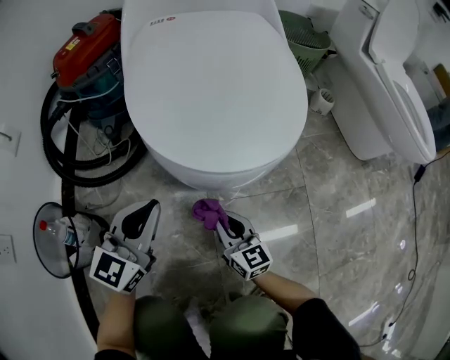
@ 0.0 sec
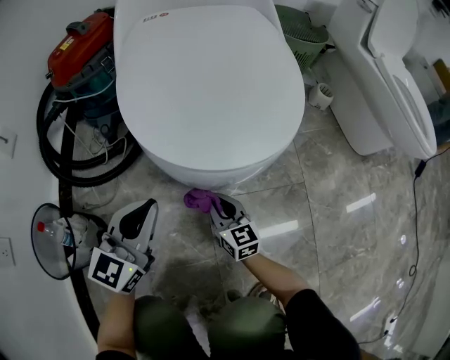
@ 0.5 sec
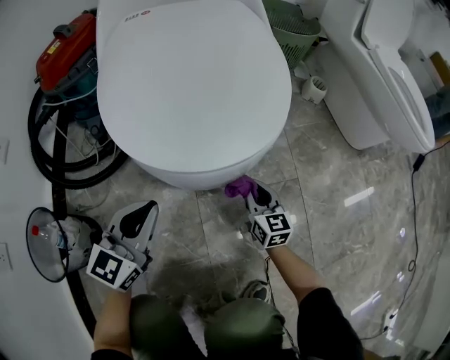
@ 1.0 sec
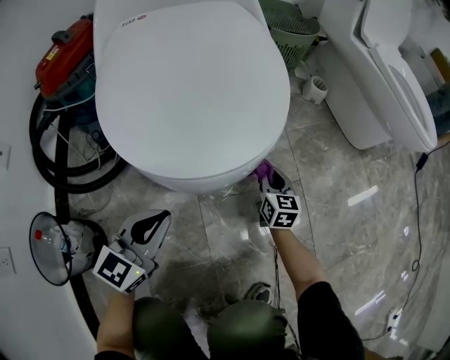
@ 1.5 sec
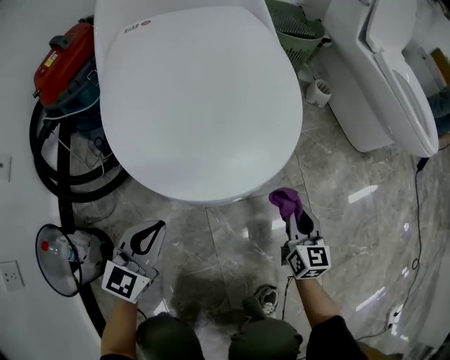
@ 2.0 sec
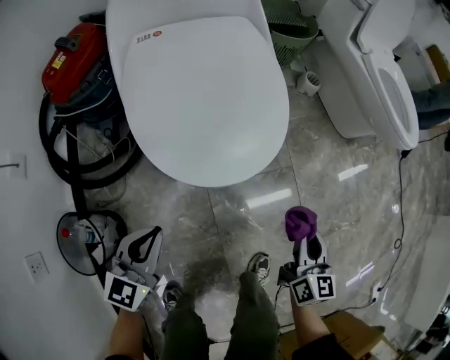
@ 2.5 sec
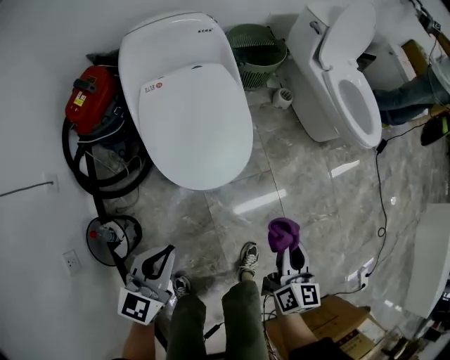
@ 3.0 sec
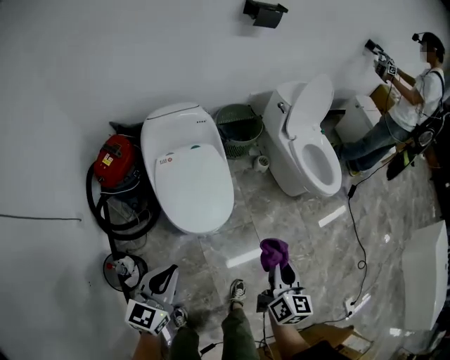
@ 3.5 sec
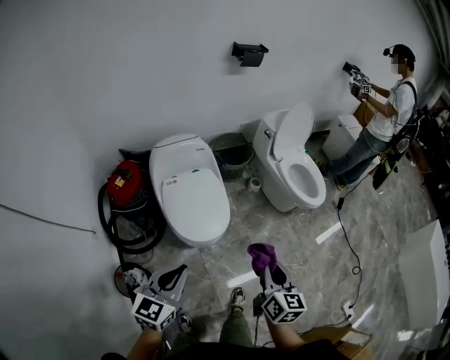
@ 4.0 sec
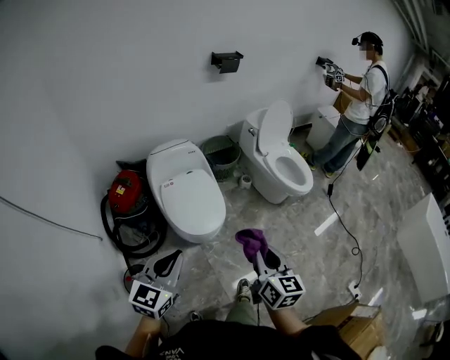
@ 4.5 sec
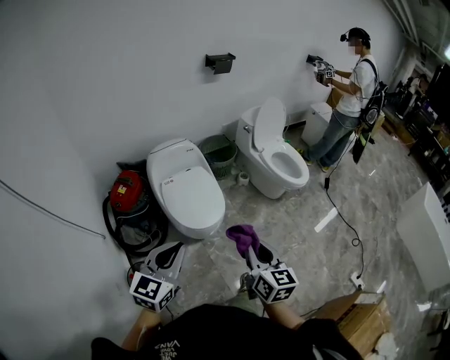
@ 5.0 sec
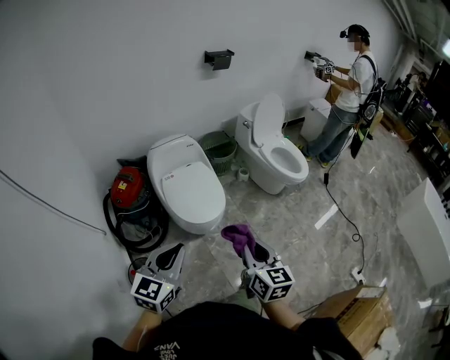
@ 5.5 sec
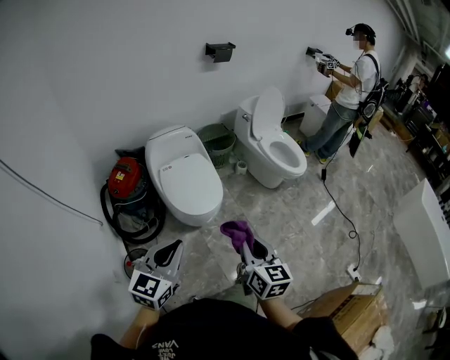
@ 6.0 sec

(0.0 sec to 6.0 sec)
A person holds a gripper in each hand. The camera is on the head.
0.0 sec - 2.0 sec: The right gripper heads to the right, covering about 20 cm, and rotates about 30 degrees, while the left gripper shifts roughly 5 cm downward.
2.0 sec - 4.0 sec: Both grippers move upward, approximately 70 cm.
4.0 sec - 6.0 sec: The left gripper shifts roughly 15 cm backward and upward. Meanwhile the right gripper goes some 15 cm backward.

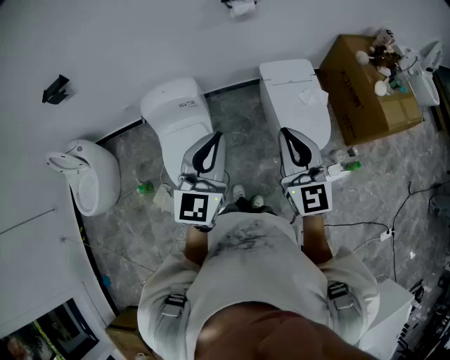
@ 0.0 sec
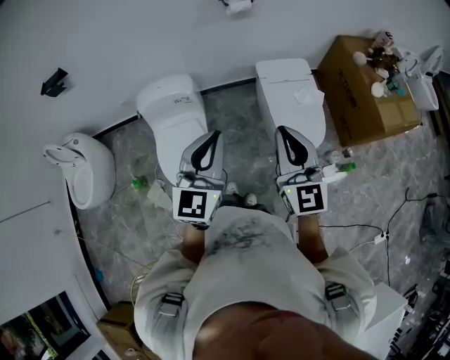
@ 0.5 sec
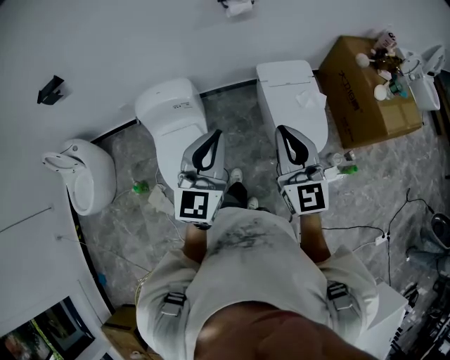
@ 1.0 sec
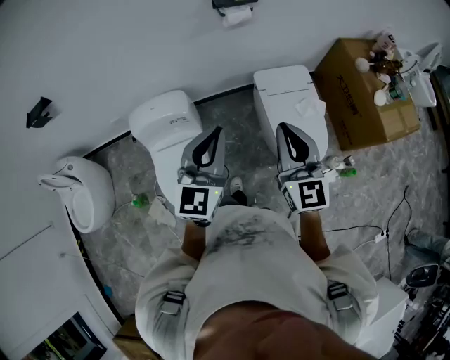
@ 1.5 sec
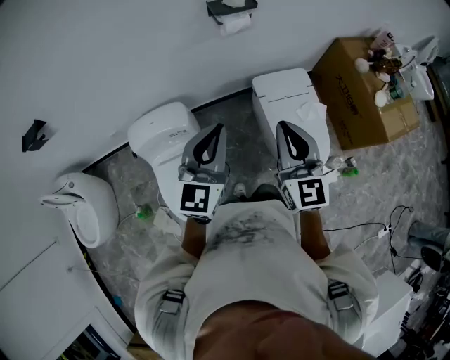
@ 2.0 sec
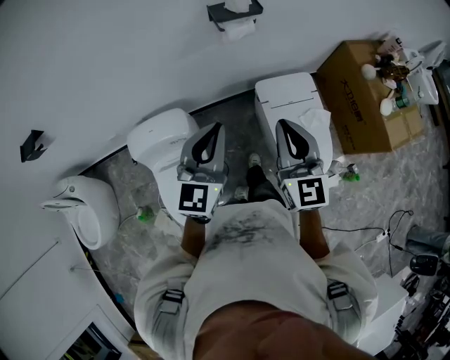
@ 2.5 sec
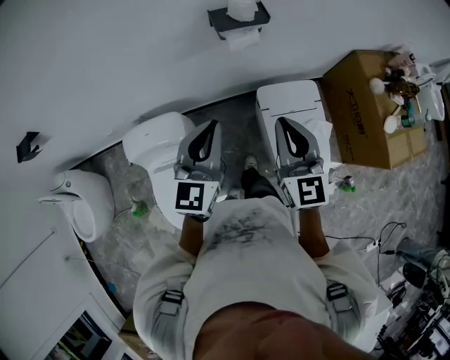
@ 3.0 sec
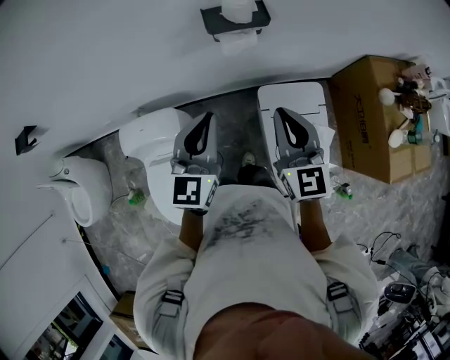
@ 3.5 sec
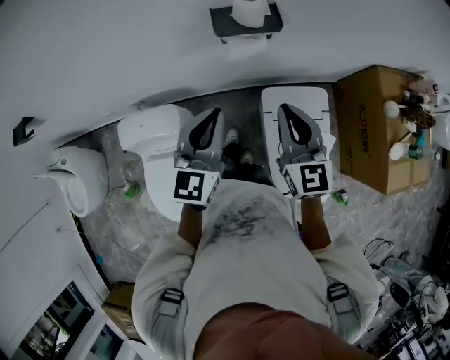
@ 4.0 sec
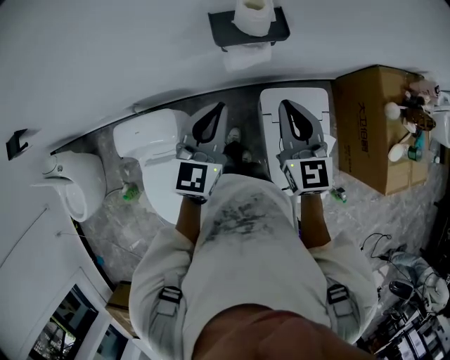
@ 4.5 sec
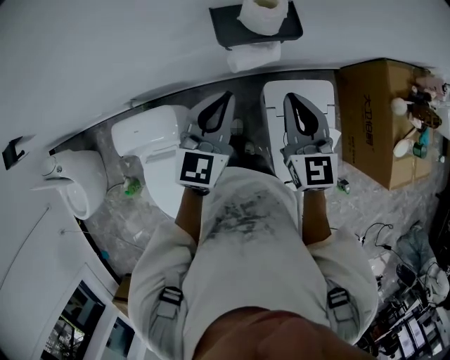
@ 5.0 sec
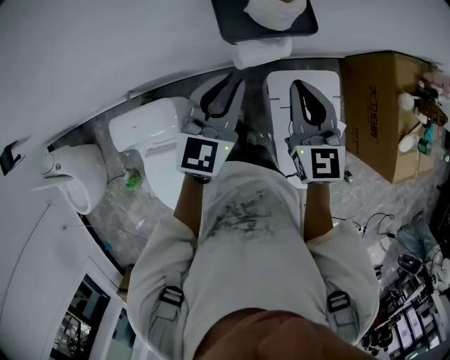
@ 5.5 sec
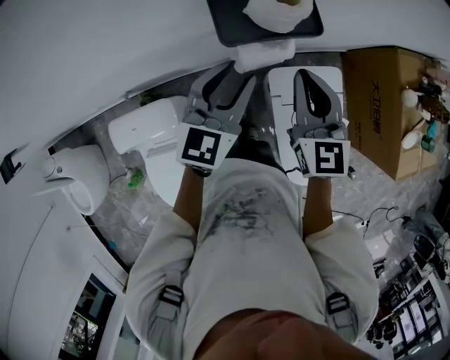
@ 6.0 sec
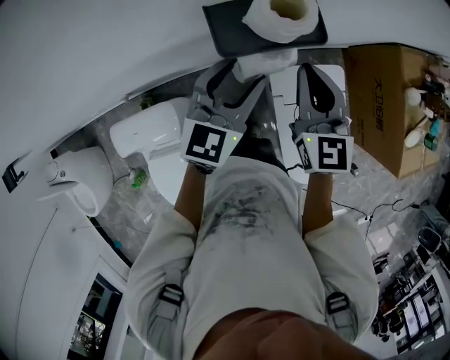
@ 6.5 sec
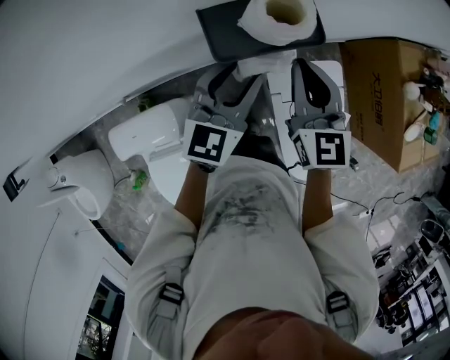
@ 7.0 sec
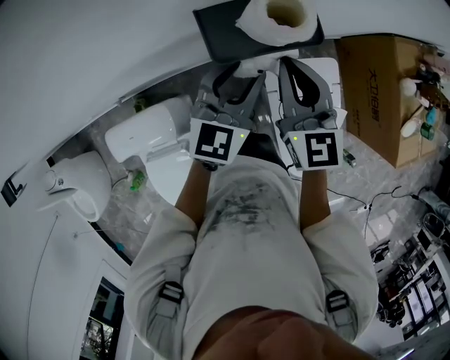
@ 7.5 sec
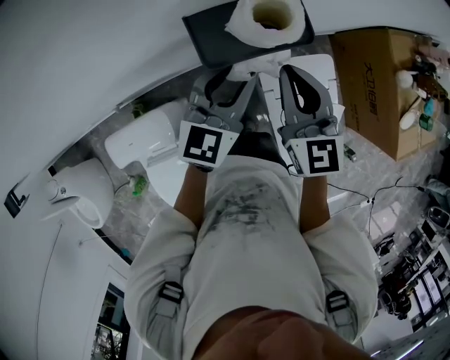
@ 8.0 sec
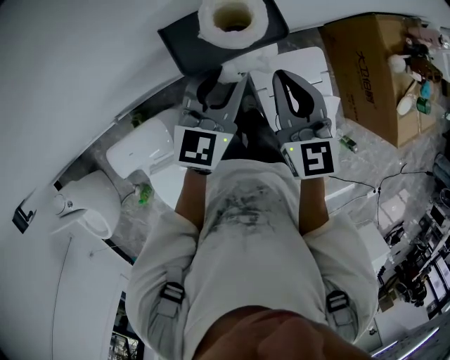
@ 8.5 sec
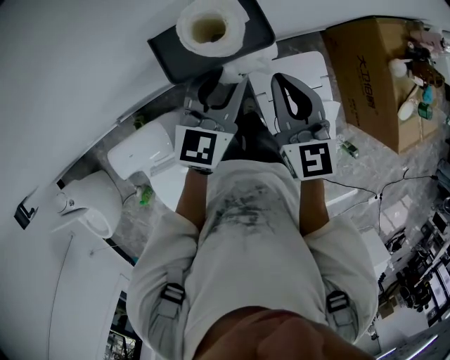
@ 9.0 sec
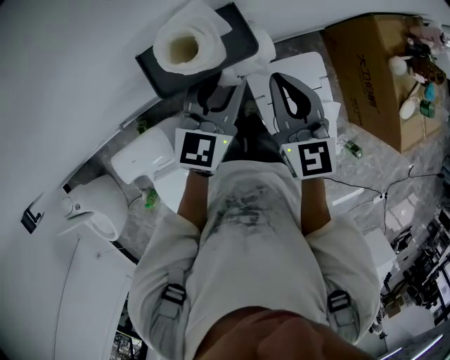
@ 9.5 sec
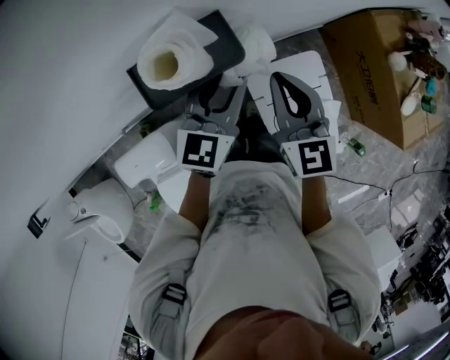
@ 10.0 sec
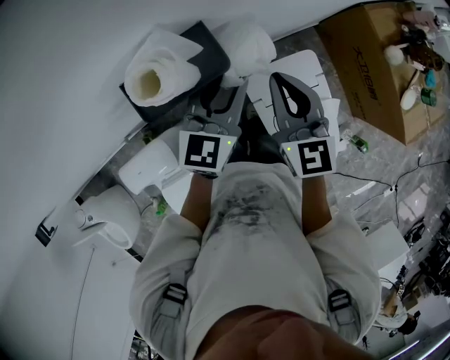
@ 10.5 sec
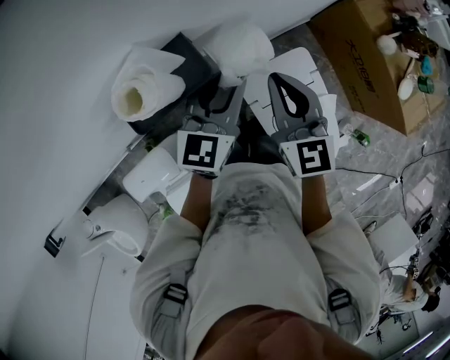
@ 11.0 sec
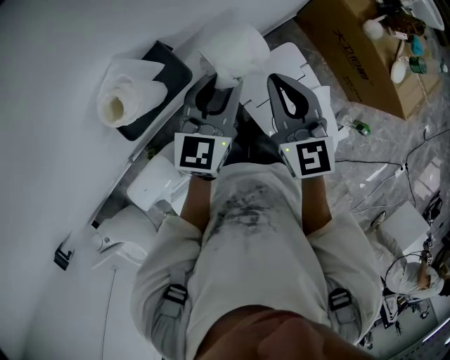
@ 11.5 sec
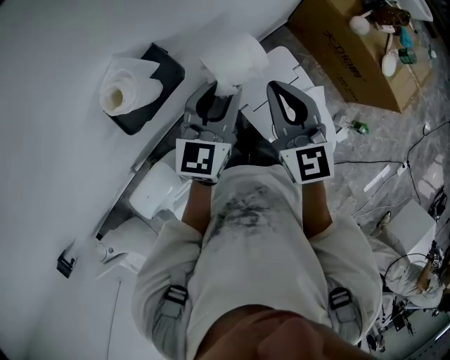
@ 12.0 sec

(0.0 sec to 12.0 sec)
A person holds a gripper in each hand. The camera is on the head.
0.0 sec - 2.0 sec: The grippers both shift forward by some 25 cm.
2.0 sec - 4.0 sec: The two grippers go roughly 30 cm forward.
4.0 sec - 6.0 sec: Both grippers move forward and downward, roughly 15 cm. The left gripper opens its fingers.
6.0 sec - 8.0 sec: The left gripper changes place by roughly 5 cm.
8.0 sec - 10.0 sec: Both grippers travel together to the right, roughly 5 cm.
10.0 sec - 12.0 sec: The two grippers go some 10 cm to the right.

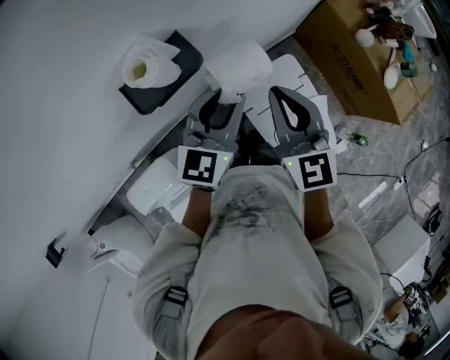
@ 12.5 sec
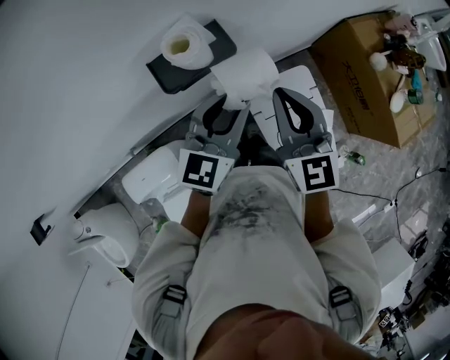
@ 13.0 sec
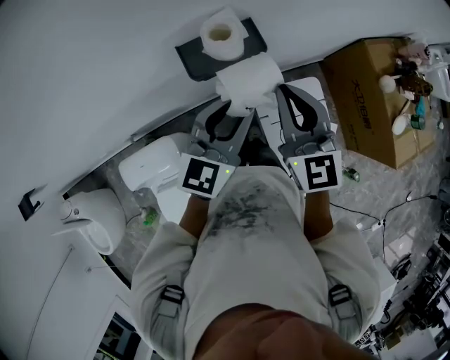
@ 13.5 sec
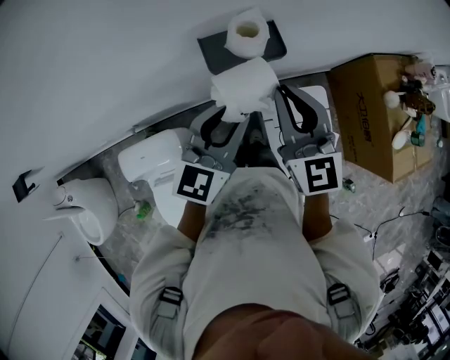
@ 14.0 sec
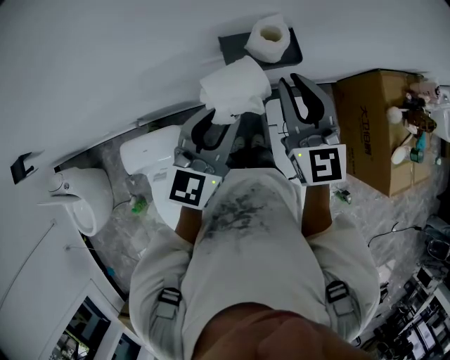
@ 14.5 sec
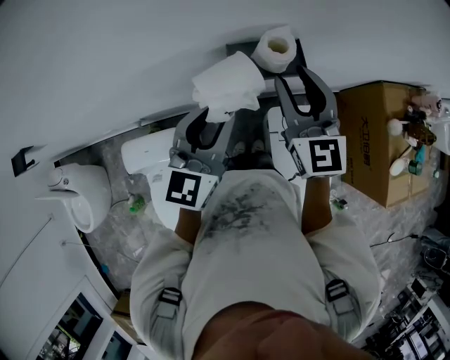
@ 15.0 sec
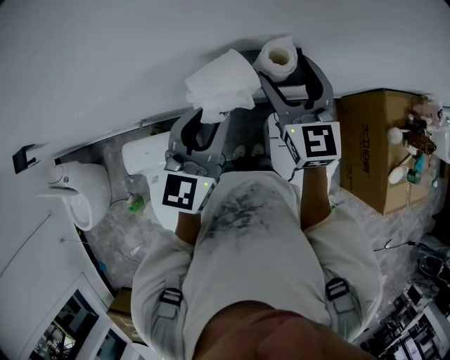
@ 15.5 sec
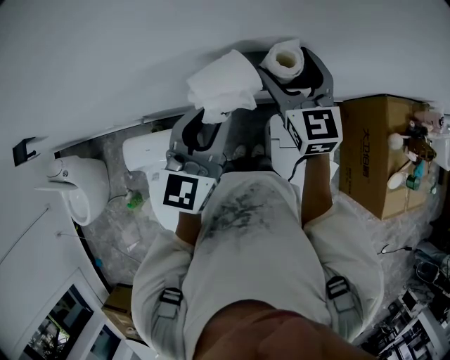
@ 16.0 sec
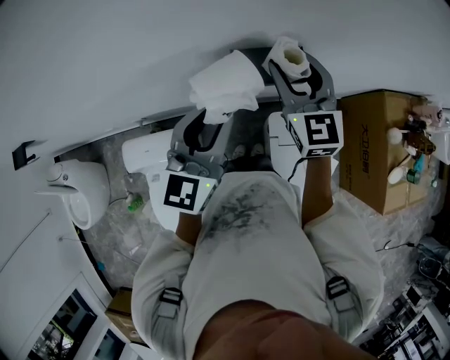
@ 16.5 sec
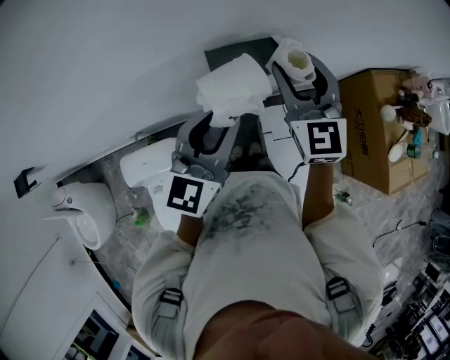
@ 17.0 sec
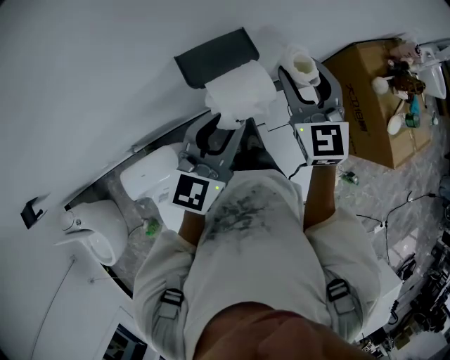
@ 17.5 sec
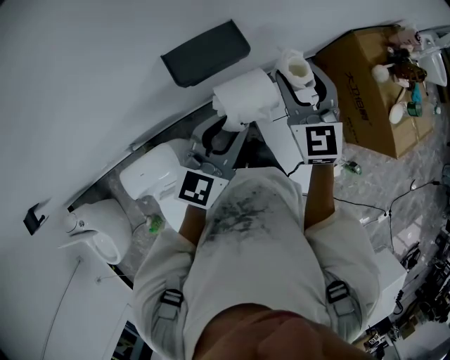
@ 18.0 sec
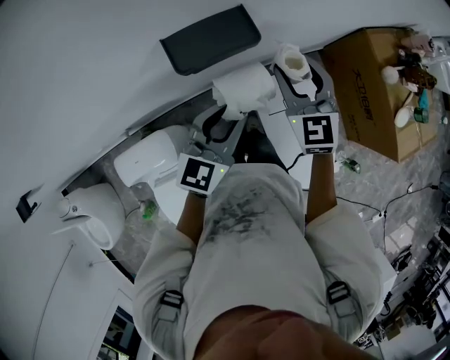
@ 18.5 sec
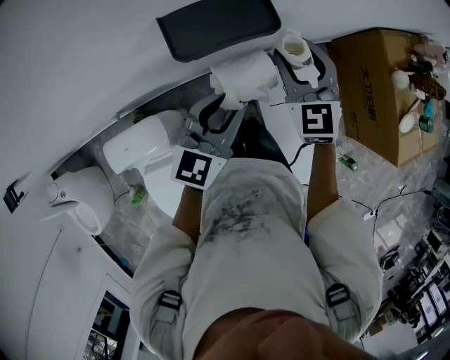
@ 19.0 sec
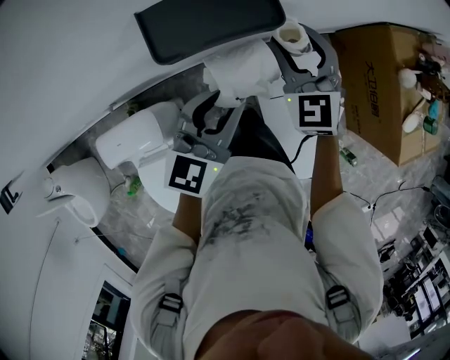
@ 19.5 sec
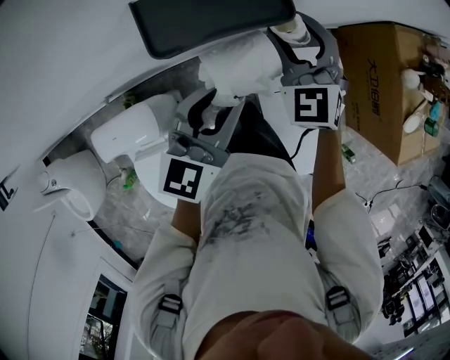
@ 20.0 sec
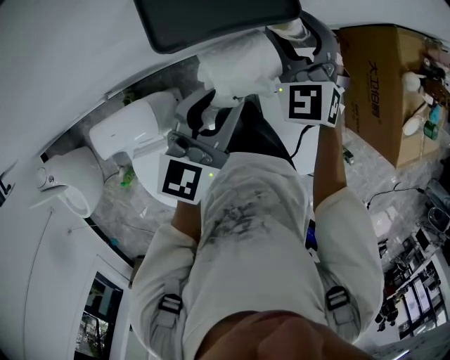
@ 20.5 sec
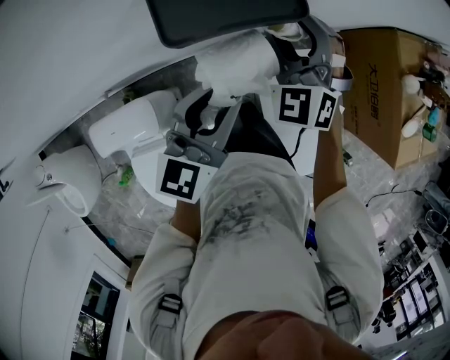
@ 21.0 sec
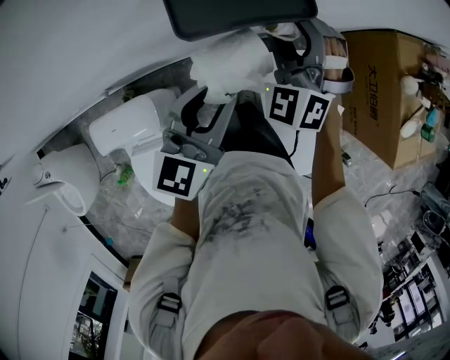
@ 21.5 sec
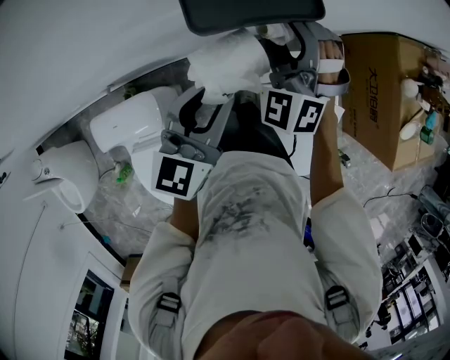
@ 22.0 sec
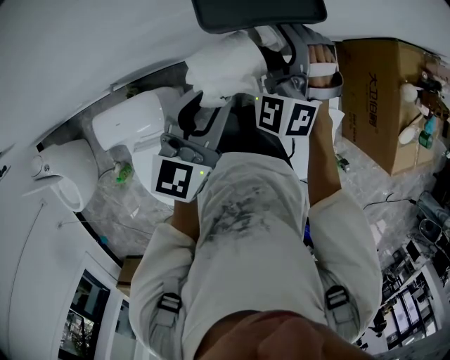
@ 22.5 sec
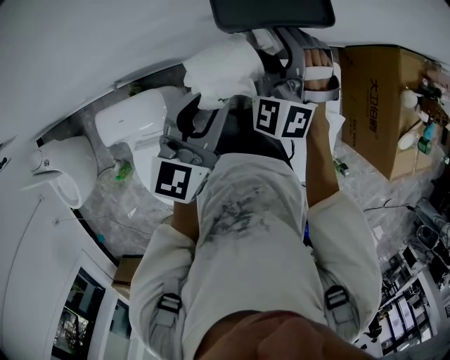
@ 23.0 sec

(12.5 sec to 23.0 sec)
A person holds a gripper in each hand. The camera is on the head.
12.5 sec - 14.5 sec: The right gripper travels to the left by approximately 15 cm, and turns by approximately 20 degrees. The left gripper goes approximately 20 cm to the left and backward, and changes its angle by roughly 20 degrees.
14.5 sec - 16.5 sec: The left gripper ends up roughly 5 cm from where it was, while the right gripper heads forward, covering roughly 10 cm, and opens its fingers.
16.5 sec - 19.0 sec: Both grippers move downward and to the right, roughly 20 cm. The left gripper swivels roughly 20 degrees.
19.0 sec - 21.0 sec: The right gripper goes about 5 cm to the left, and swivels some 30 degrees.
21.0 sec - 23.0 sec: Both grippers travel together to the left, approximately 10 cm.
